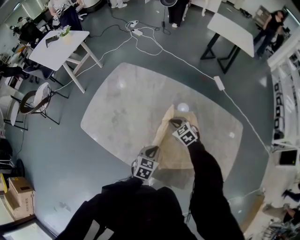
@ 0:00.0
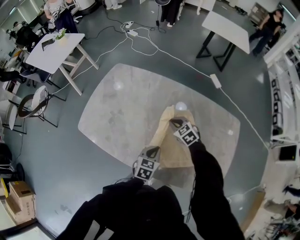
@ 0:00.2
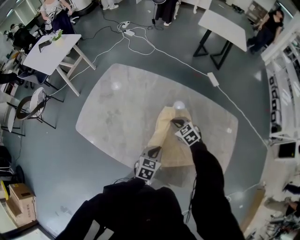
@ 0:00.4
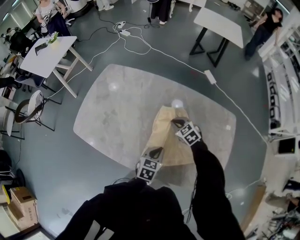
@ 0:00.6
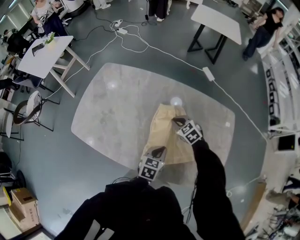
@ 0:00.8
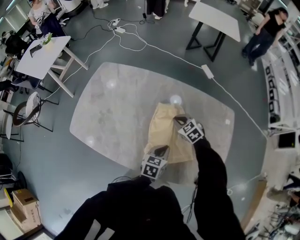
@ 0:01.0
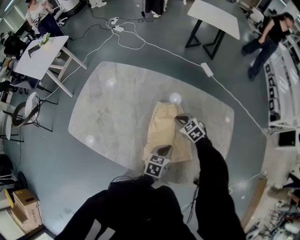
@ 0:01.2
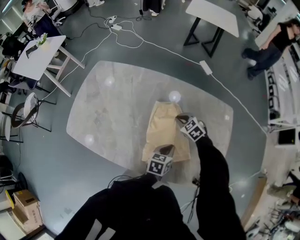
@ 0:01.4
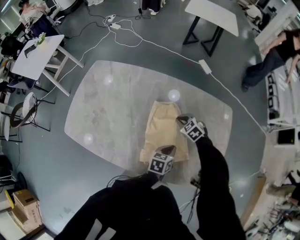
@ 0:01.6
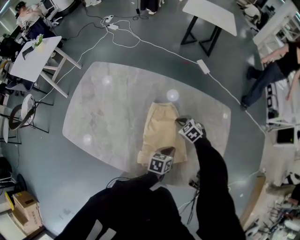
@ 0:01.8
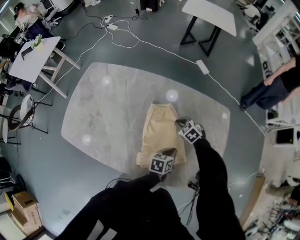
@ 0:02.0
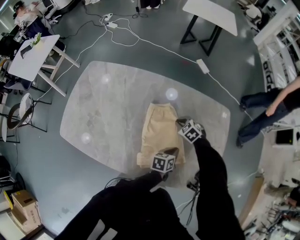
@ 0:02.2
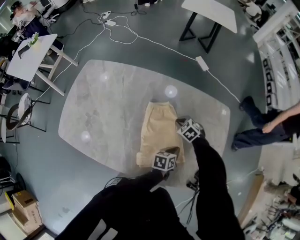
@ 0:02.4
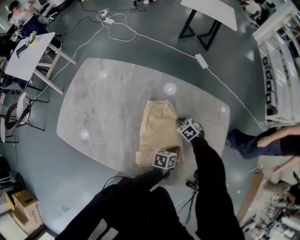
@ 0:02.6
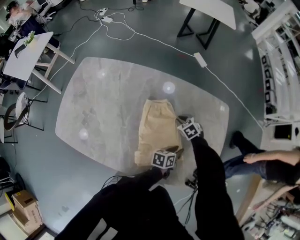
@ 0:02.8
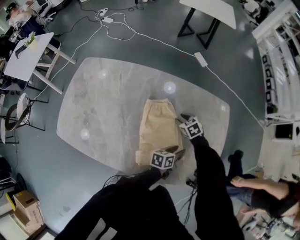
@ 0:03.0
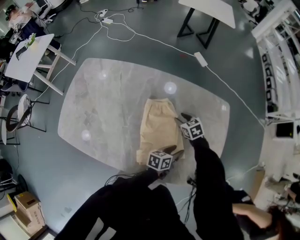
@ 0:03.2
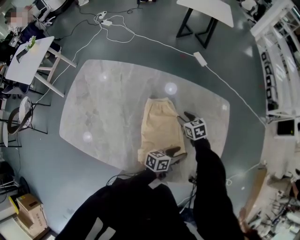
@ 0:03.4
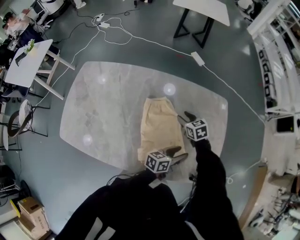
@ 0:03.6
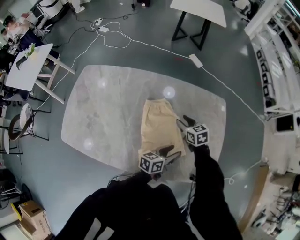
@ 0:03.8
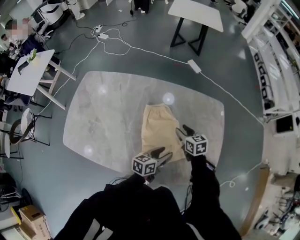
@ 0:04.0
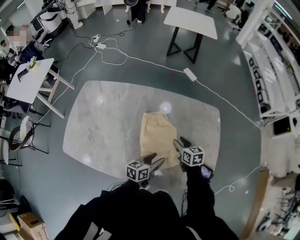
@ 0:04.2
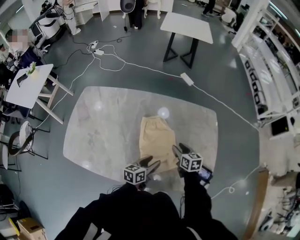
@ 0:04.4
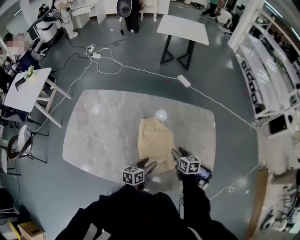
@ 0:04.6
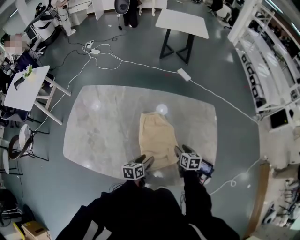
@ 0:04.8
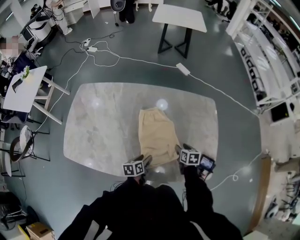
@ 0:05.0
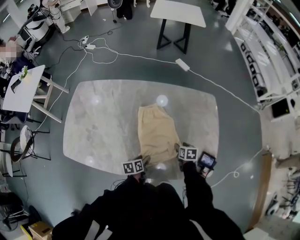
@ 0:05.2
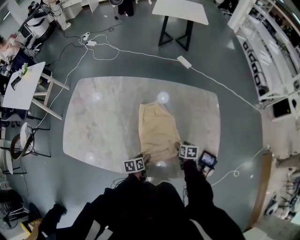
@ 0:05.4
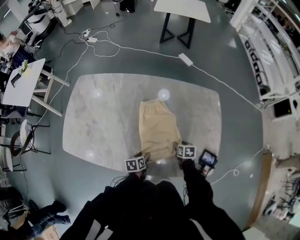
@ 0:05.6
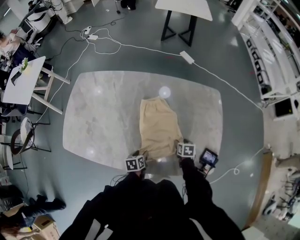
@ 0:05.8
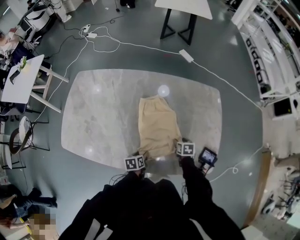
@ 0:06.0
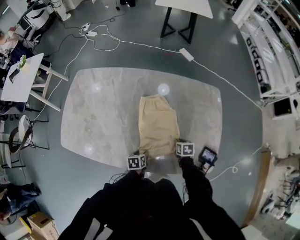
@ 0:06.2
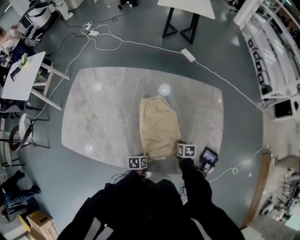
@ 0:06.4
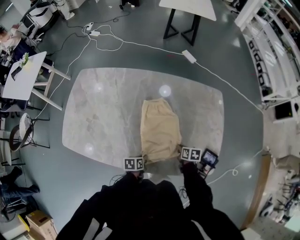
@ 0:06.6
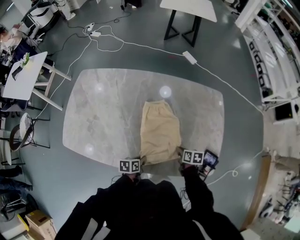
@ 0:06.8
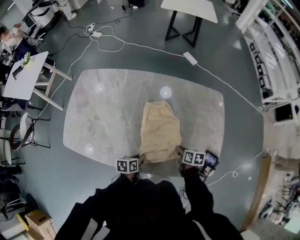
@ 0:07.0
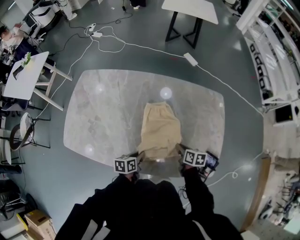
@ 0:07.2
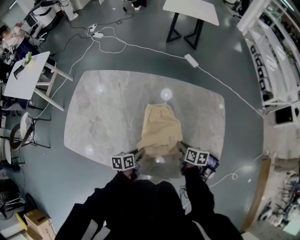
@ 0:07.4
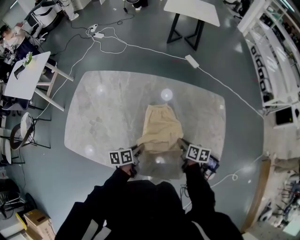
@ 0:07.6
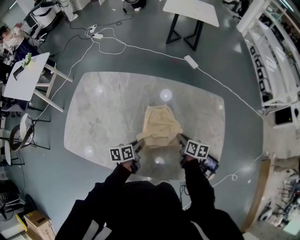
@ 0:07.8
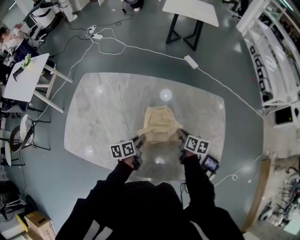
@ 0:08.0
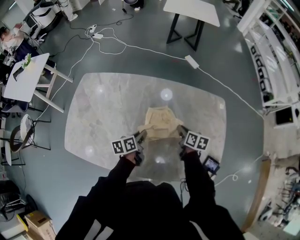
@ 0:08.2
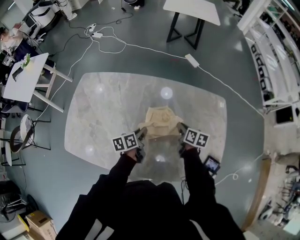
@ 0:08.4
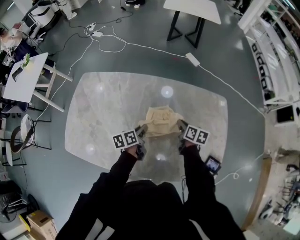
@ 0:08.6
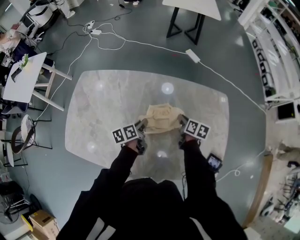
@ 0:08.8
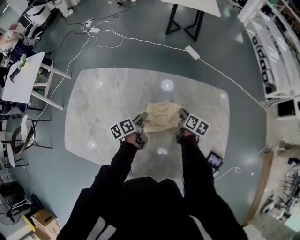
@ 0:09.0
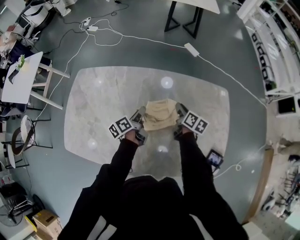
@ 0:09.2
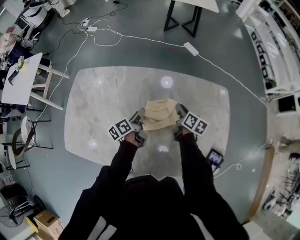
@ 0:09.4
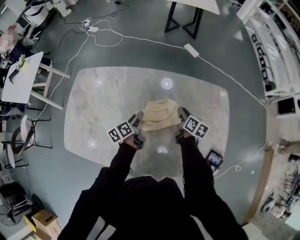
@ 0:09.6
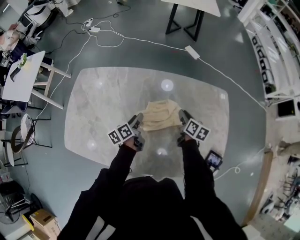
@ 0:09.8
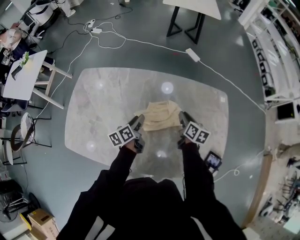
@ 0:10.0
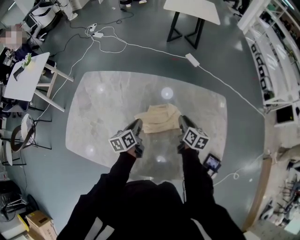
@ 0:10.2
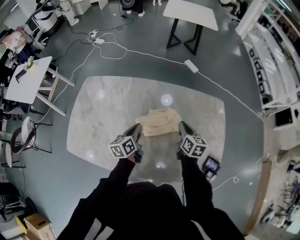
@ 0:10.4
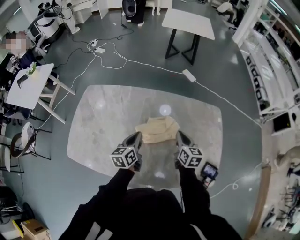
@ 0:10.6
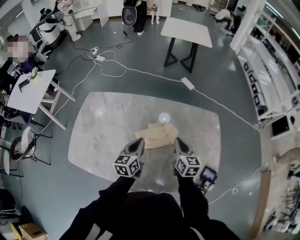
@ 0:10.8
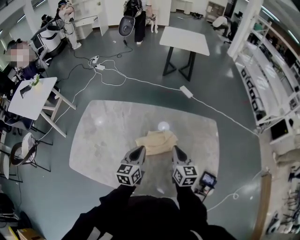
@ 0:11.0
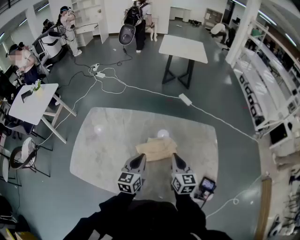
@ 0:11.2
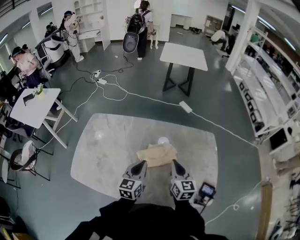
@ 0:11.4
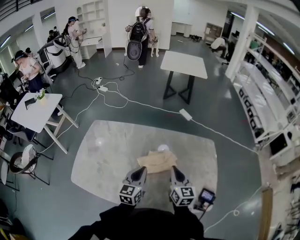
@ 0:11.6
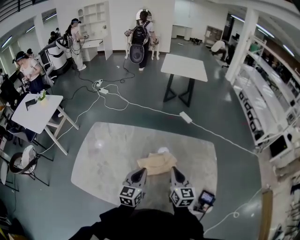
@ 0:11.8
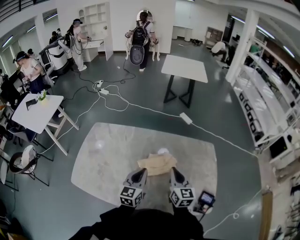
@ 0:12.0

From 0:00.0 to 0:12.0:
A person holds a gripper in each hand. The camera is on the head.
From 0:00.0 to 0:01.6: Both grippers travel together to the right, some 20 cm. The left gripper rotates approximately 20 degrees.
From 0:01.6 to 0:03.0: The left gripper shifts some 10 cm to the right, rotates some 20 degrees, and opens its fingers; the right gripper travels downward by approximately 5 cm, swivels about 20 degrees, and opens its fingers.
From 0:03.0 to 0:04.4: The left gripper heads to the left, backward and upward, covering roughly 15 cm. The right gripper shifts some 15 cm backward and upward, and swivels roughly 40 degrees.
From 0:04.4 to 0:06.0: The left gripper travels downward and backward by approximately 15 cm, and points its fingers approximately 30 degrees further downward; the right gripper goes roughly 15 cm downward, and changes its angle by approximately 30 degrees.
From 0:06.0 to 0:07.6: The left gripper shifts roughly 15 cm upward and forward, swivels some 20 degrees, and closes, while the right gripper travels upward by approximately 10 cm, rotates approximately 30 degrees, and closes up.
From 0:07.6 to 0:09.0: The grippers both shift forward by approximately 15 cm.
From 0:09.0 to 0:10.4: Both grippers move upward and backward, roughly 10 cm. The right gripper changes its angle by some 20 degrees. Meanwhile the left gripper swivels about 20 degrees, and closes.
From 0:10.4 to 0:12.0: Both grippers travel together upward and backward, roughly 15 cm. The right gripper changes its angle by some 20 degrees. The left gripper changes its angle by roughly 40 degrees.

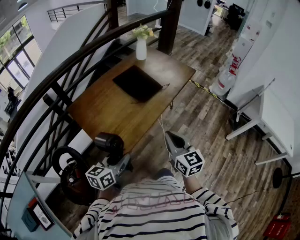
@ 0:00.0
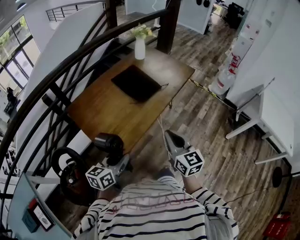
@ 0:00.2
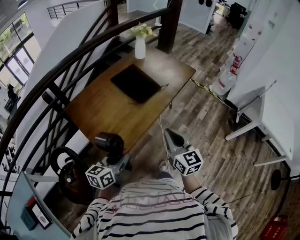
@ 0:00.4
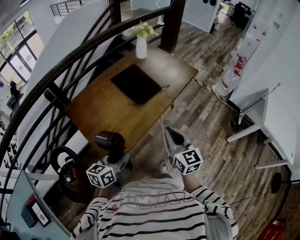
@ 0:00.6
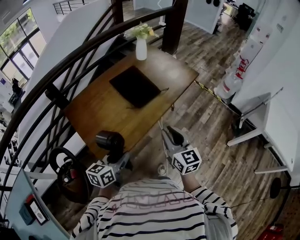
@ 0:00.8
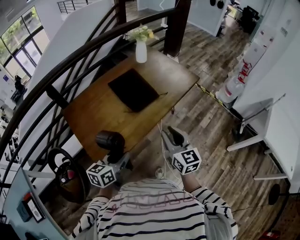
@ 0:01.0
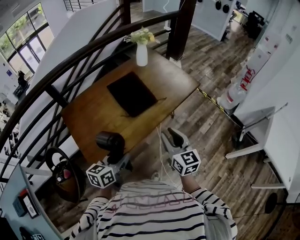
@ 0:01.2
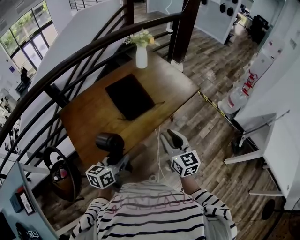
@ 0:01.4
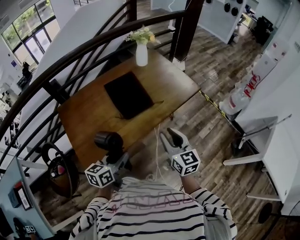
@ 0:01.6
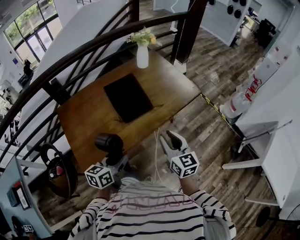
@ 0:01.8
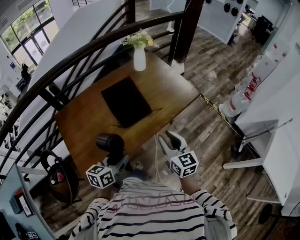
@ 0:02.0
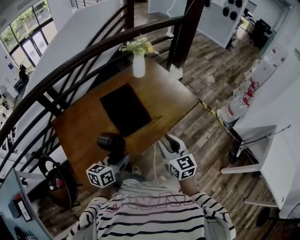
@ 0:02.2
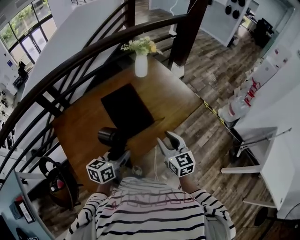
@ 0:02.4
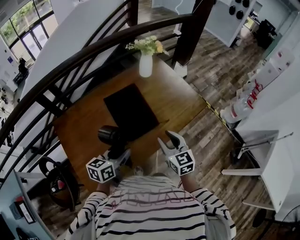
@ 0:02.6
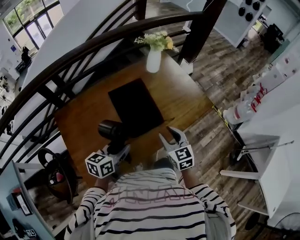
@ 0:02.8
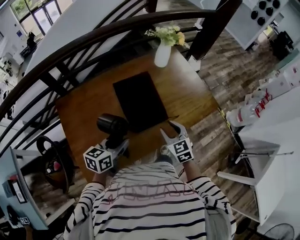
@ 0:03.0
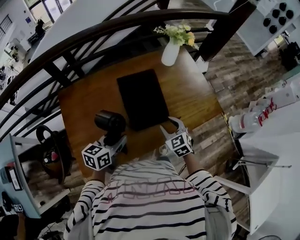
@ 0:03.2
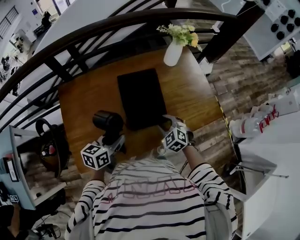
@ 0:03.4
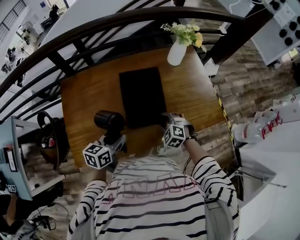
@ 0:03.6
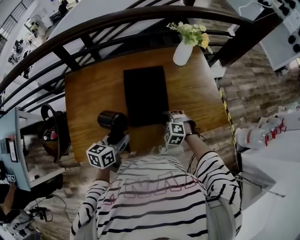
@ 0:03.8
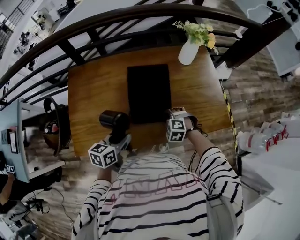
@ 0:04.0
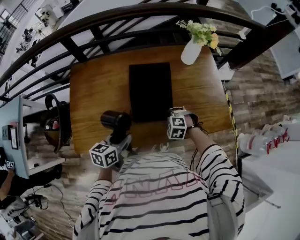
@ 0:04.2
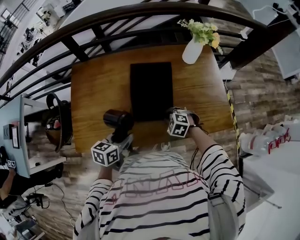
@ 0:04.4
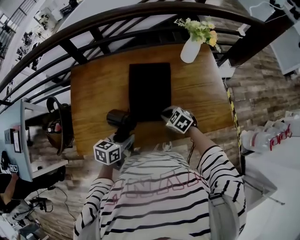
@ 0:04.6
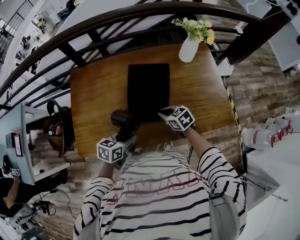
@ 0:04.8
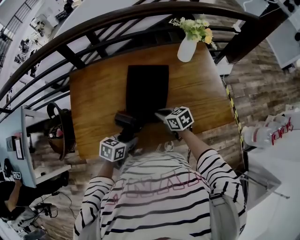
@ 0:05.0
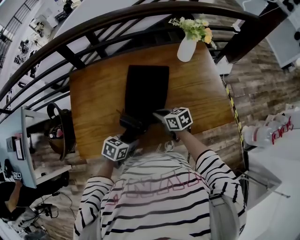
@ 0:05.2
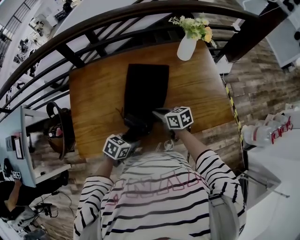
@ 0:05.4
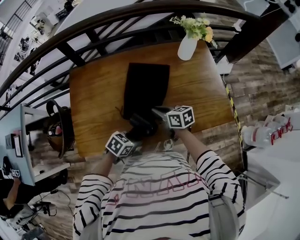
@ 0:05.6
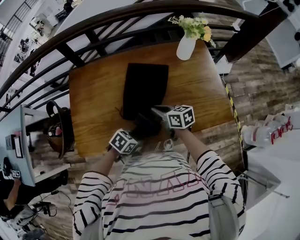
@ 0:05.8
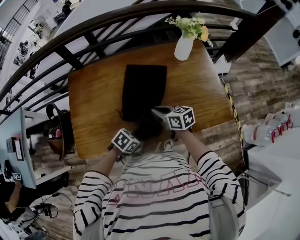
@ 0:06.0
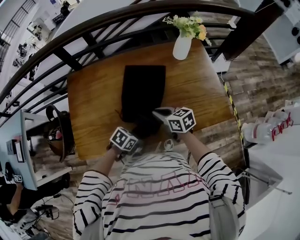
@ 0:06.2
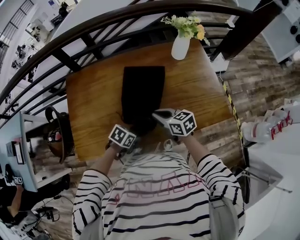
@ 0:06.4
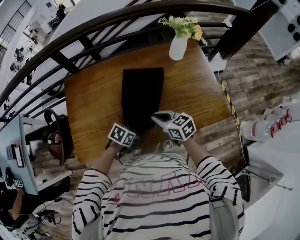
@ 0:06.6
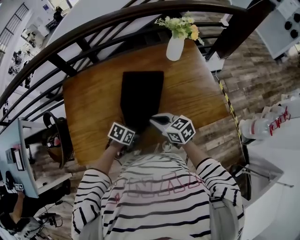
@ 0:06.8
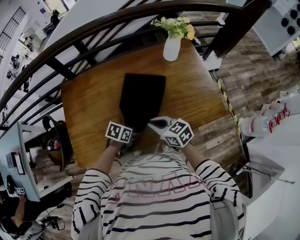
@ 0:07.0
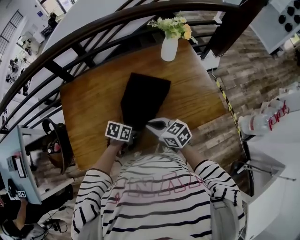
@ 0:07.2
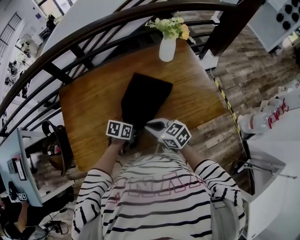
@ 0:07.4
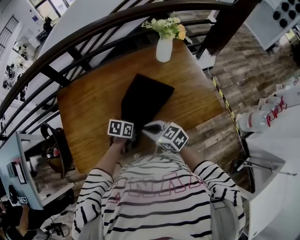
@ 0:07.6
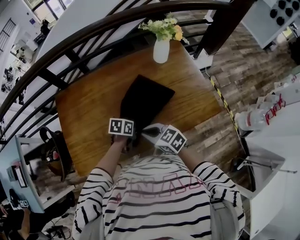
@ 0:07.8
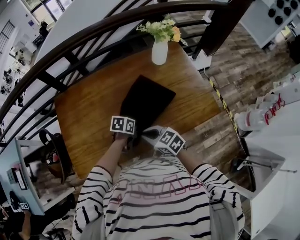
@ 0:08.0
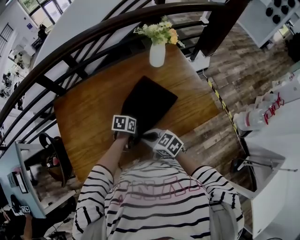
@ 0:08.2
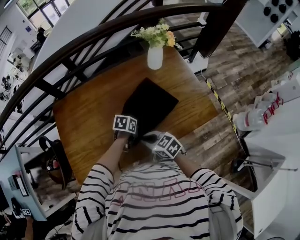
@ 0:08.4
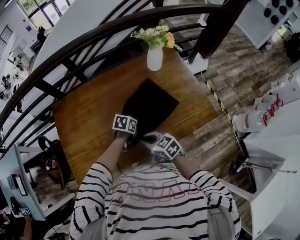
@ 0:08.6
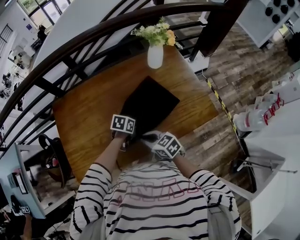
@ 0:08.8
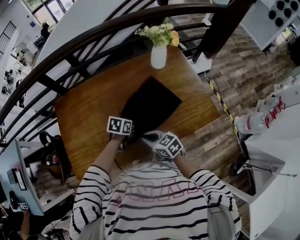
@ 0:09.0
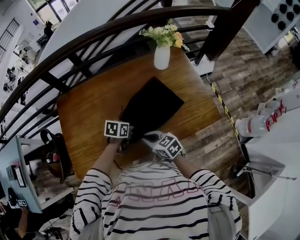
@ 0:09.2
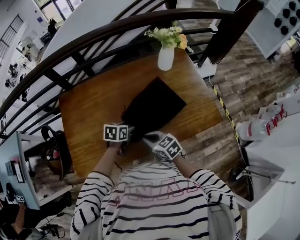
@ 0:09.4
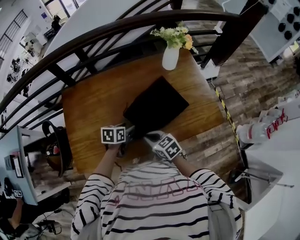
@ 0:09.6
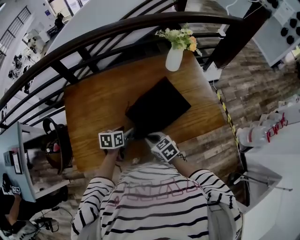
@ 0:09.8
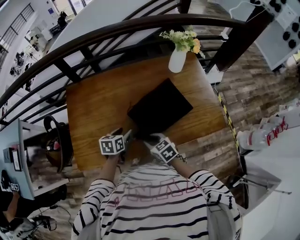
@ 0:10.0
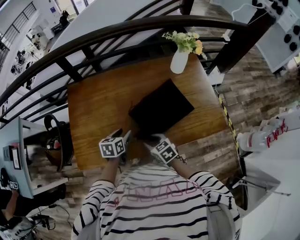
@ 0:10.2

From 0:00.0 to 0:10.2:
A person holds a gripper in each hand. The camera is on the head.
From 0:00.0 to 0:01.4: The two grippers go about 25 cm forward and to the right. The right gripper opens its fingers.
From 0:01.4 to 0:03.0: The right gripper travels forward and downward by roughly 25 cm, and changes its angle by some 30 degrees; the left gripper goes roughly 20 cm forward.
From 0:03.0 to 0:04.4: The right gripper travels downward by about 15 cm, tips its fingers downward by roughly 30 degrees, and closes its fingers. Meanwhile the left gripper goes roughly 5 cm downward, and changes its angle by approximately 20 degrees.
From 0:04.4 to 0:05.8: The left gripper moves downward, some 10 cm, and changes its angle by about 40 degrees; the right gripper shifts about 10 cm upward, and rotates around the line of its fingers by approximately 60 degrees, clockwise from behind.
From 0:05.8 to 0:07.2: The right gripper moves approximately 5 cm, while the left gripper changes place by approximately 10 cm.
From 0:07.2 to 0:08.8: The left gripper shifts by some 10 cm.
From 0:08.8 to 0:10.2: The left gripper moves some 15 cm, and turns by roughly 40 degrees; the right gripper ends up approximately 5 cm from where it was, and opens.

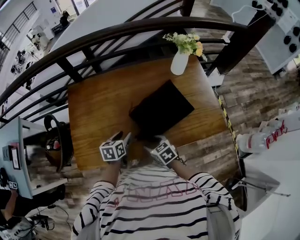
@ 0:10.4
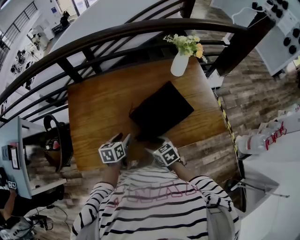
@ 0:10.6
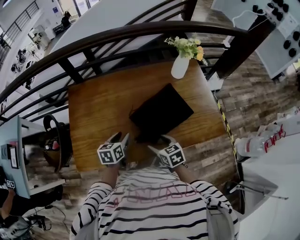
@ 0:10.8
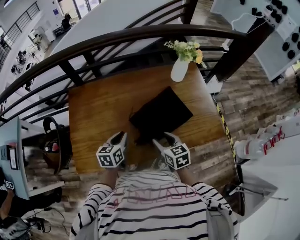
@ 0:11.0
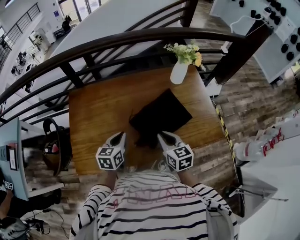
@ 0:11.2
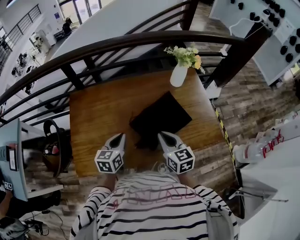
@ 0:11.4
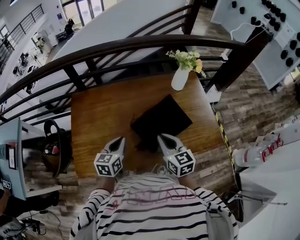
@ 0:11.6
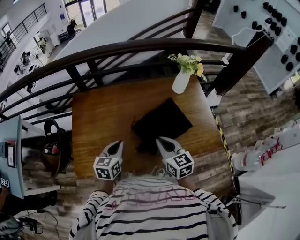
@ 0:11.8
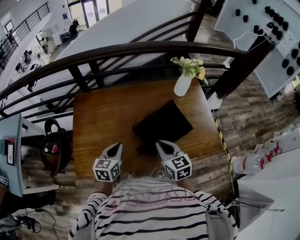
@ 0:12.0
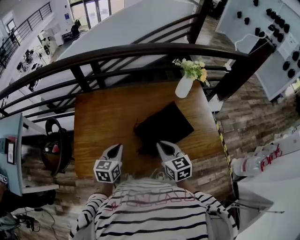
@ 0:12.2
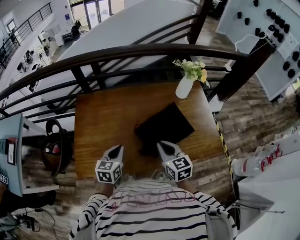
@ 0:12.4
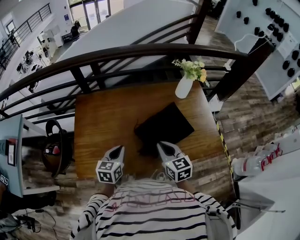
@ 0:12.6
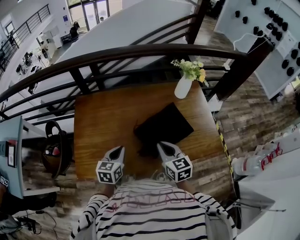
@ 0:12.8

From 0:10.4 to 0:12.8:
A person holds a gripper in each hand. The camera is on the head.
From 0:10.4 to 0:11.6: The right gripper moves upward, roughly 20 cm, changes its angle by about 30 degrees, and closes; the left gripper heads upward, covering some 10 cm, and closes.
From 0:11.6 to 0:12.8: The grippers move only a little.
